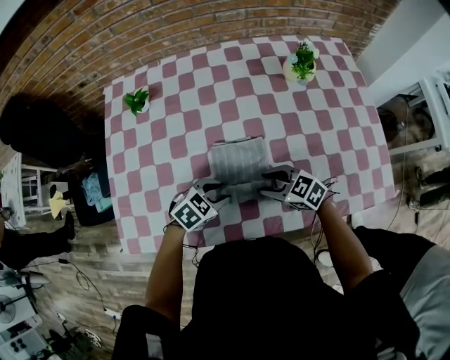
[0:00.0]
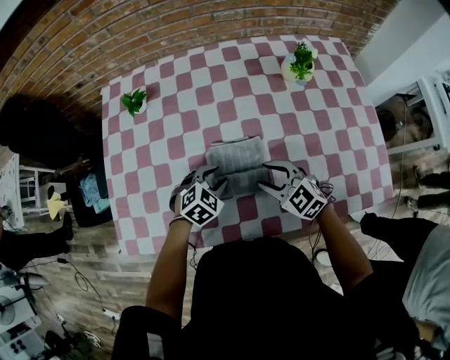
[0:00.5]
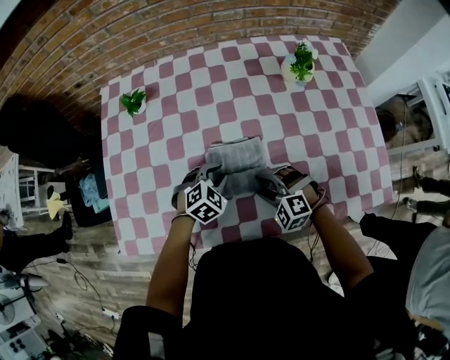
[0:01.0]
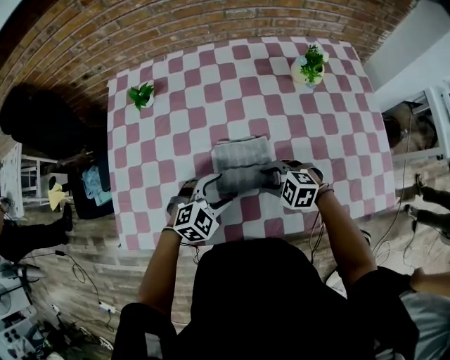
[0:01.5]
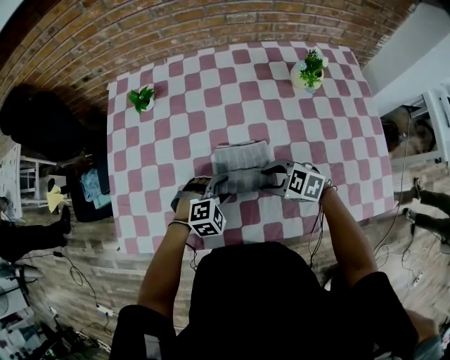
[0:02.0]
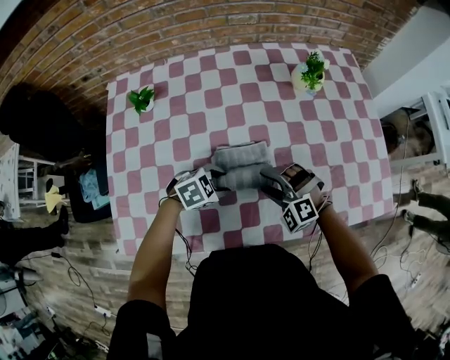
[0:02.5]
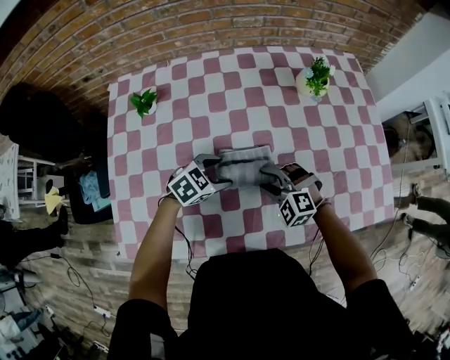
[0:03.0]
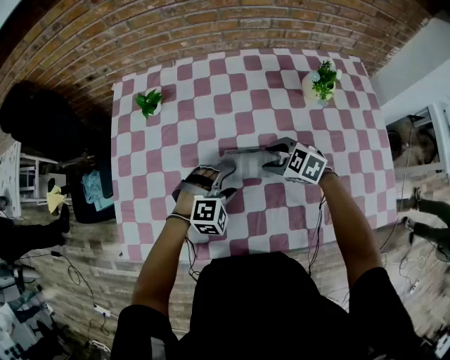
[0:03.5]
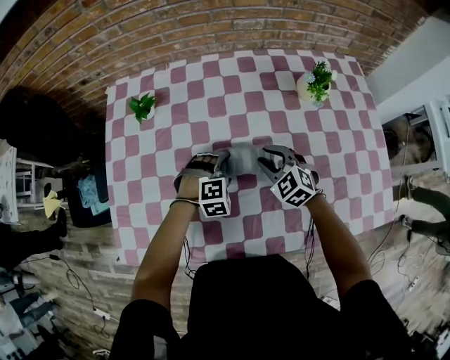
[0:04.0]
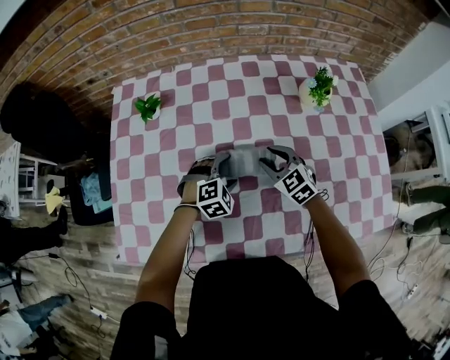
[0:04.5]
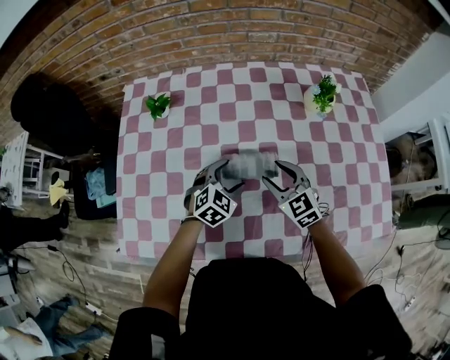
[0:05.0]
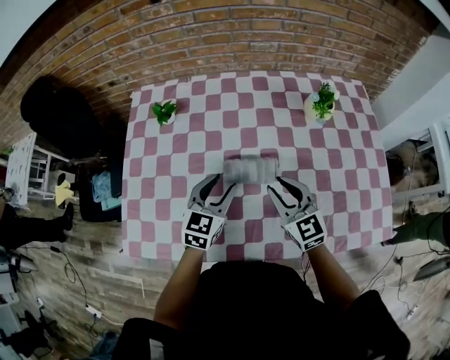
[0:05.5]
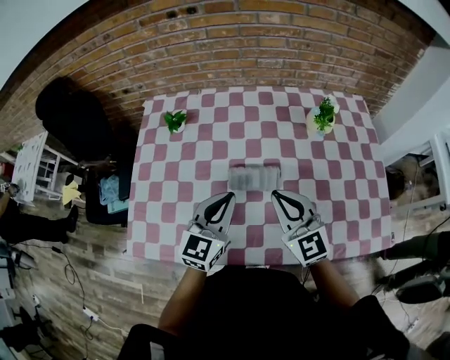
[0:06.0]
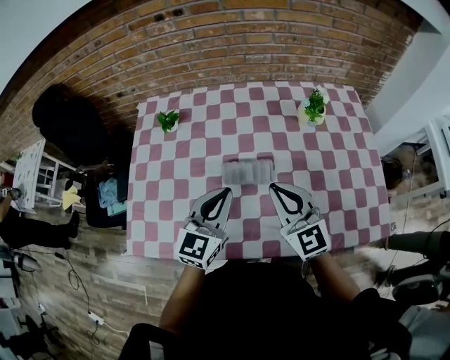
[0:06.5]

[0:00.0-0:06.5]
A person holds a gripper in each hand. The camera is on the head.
0:00.0 to 0:02.0: The left gripper turns by some 30 degrees.
0:02.0 to 0:04.5: The left gripper ends up approximately 10 cm from where it was. The right gripper moves some 15 cm, and changes its angle by approximately 30 degrees.
0:04.5 to 0:06.5: The two grippers go roughly 25 cm upward and backward. The right gripper tips its fingers upward by approximately 30 degrees, while the left gripper tips its fingers upward by approximately 50 degrees, and closes its fingers.

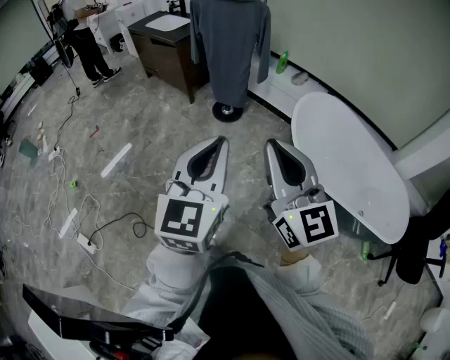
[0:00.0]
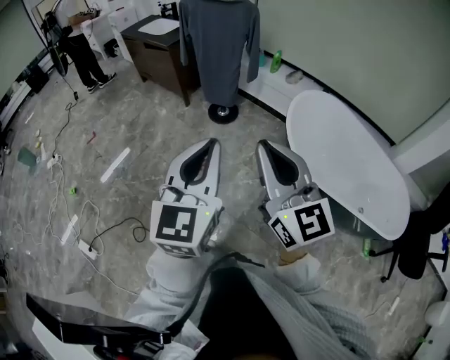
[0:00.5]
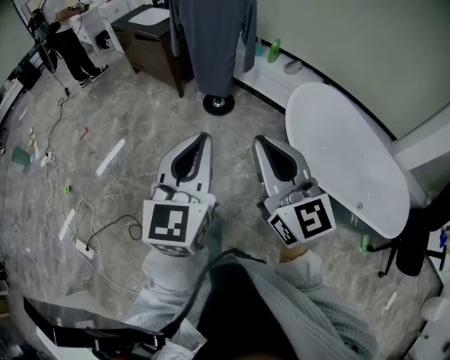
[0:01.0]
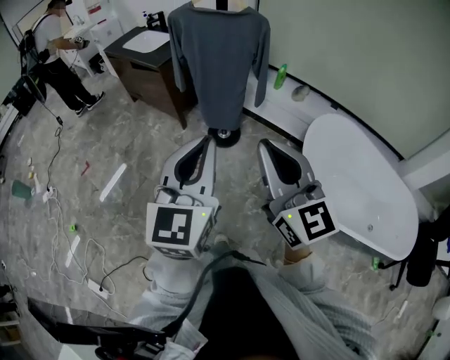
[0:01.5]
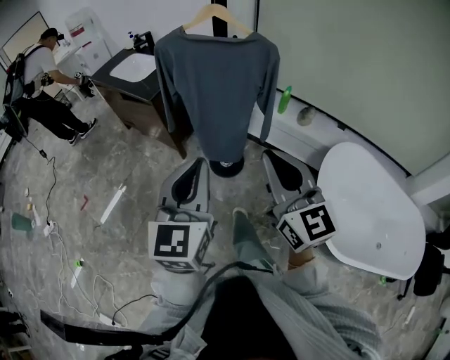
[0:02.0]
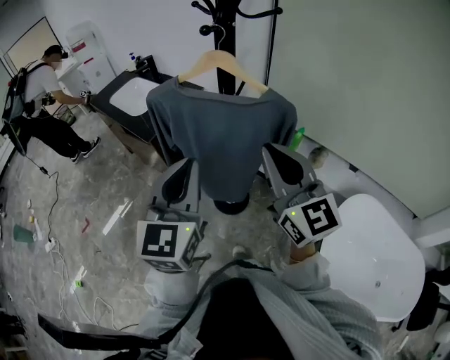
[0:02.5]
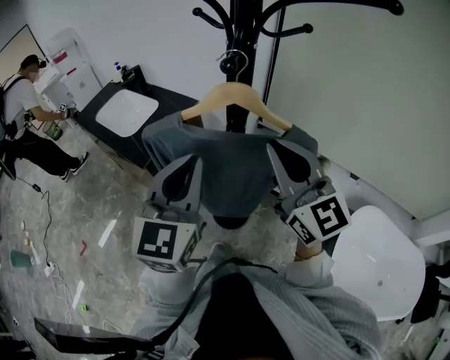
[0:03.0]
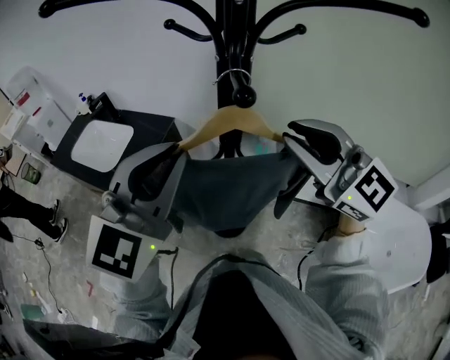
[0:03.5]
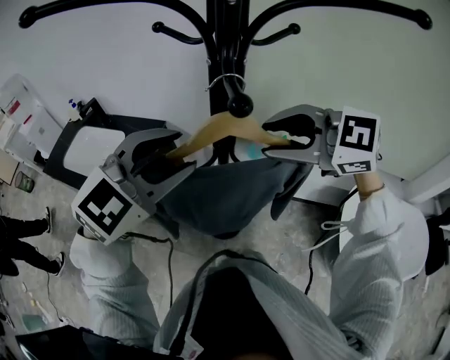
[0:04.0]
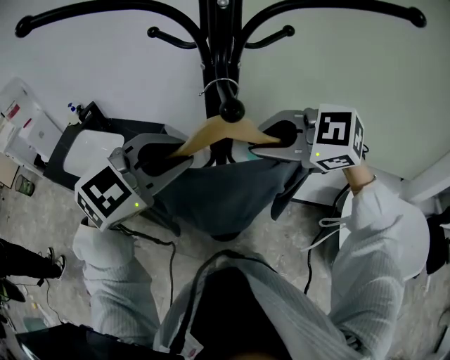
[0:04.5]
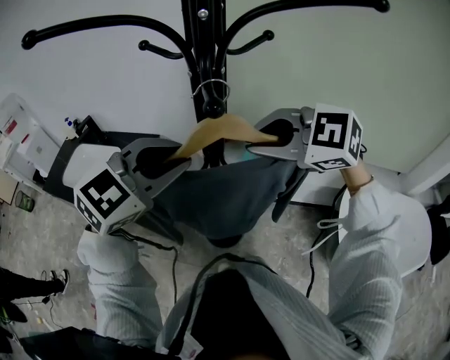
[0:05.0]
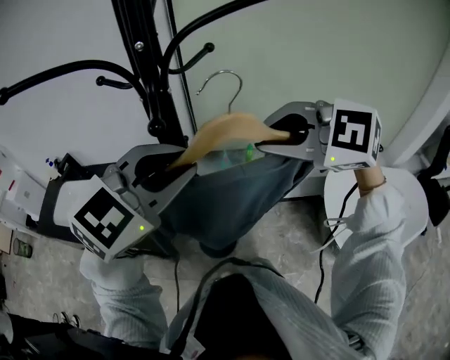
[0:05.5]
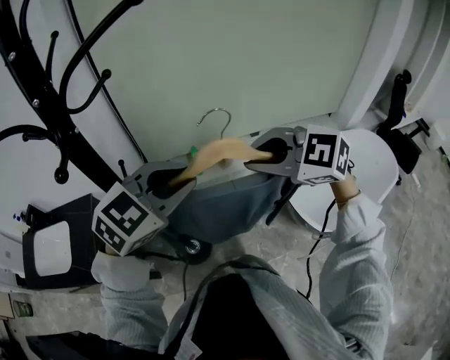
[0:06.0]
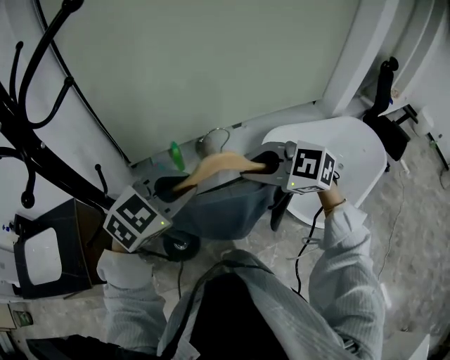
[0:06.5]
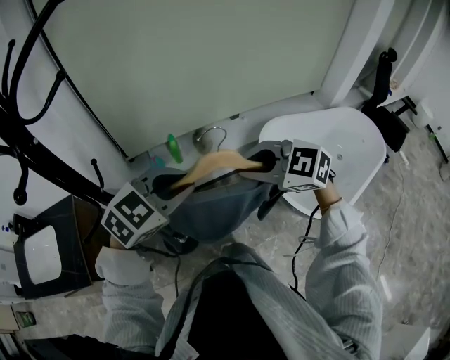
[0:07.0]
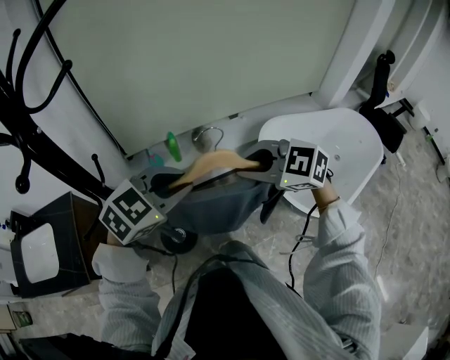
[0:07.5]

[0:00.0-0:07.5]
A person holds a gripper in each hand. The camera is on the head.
0:00.0 to 0:02.0: The two grippers travel together, forward, roughly 50 cm.
0:02.0 to 0:04.0: Both grippers are carried forward, about 50 cm. The left gripper changes its angle by roughly 60 degrees, and opens up. Meanwhile the right gripper tips its fingers downward by about 30 degrees, and opens.
0:04.0 to 0:05.5: The left gripper moves roughly 10 cm, and closes up, while the right gripper moves approximately 10 cm, and closes its fingers.
0:05.5 to 0:07.5: The right gripper moves to the right and downward, approximately 25 cm, and swivels approximately 30 degrees. The left gripper heads downward and to the right, covering roughly 25 cm, and swivels approximately 30 degrees.

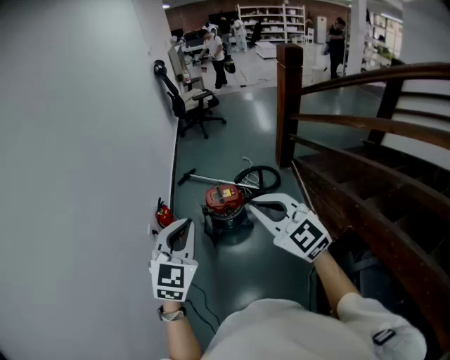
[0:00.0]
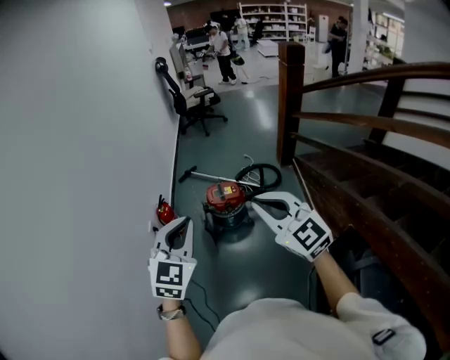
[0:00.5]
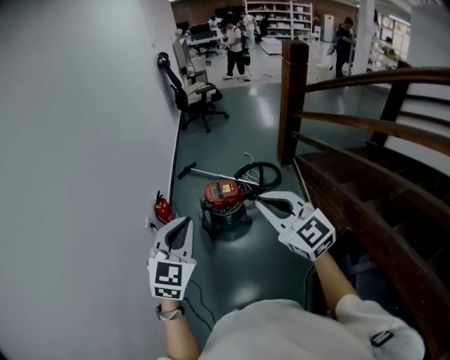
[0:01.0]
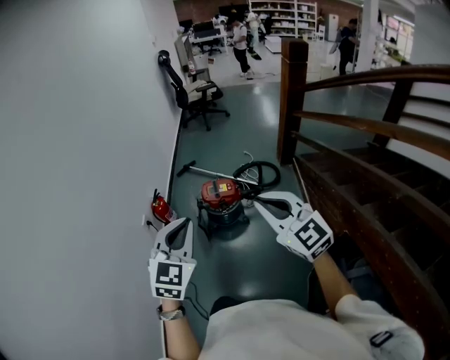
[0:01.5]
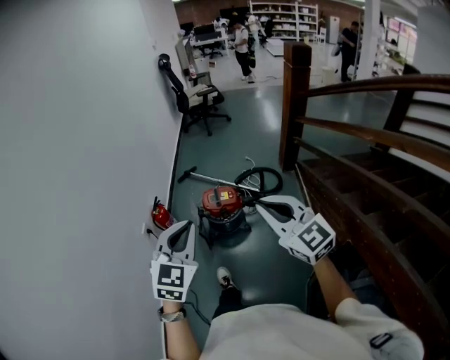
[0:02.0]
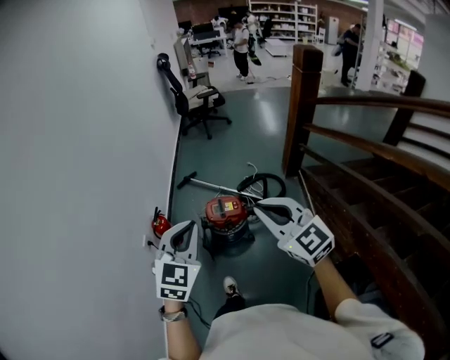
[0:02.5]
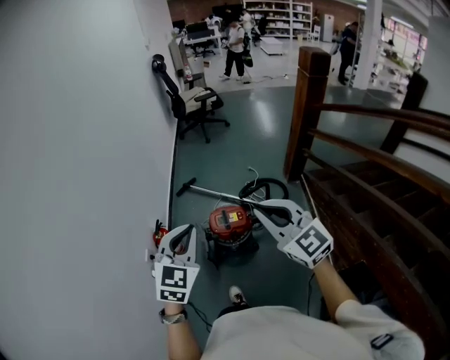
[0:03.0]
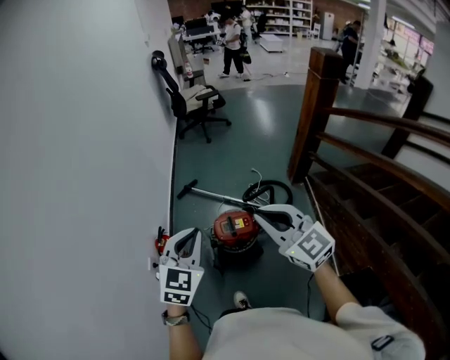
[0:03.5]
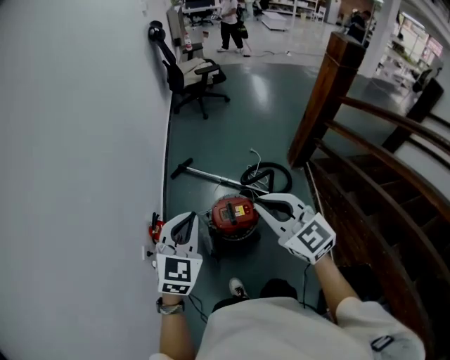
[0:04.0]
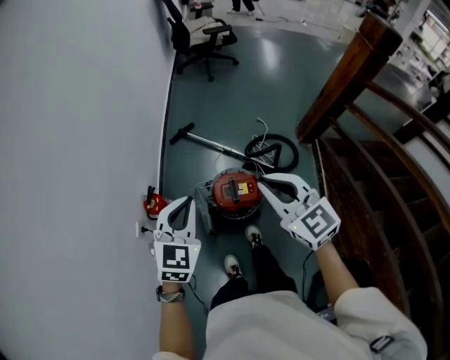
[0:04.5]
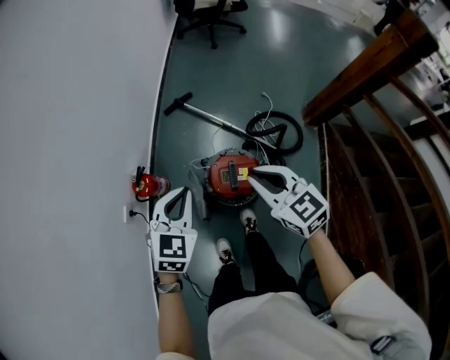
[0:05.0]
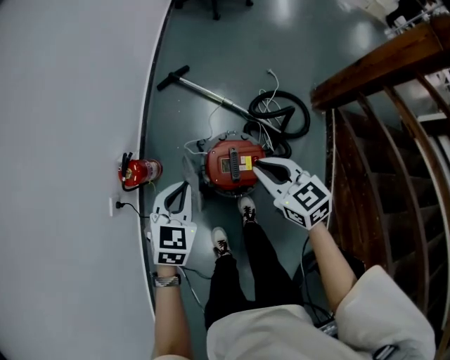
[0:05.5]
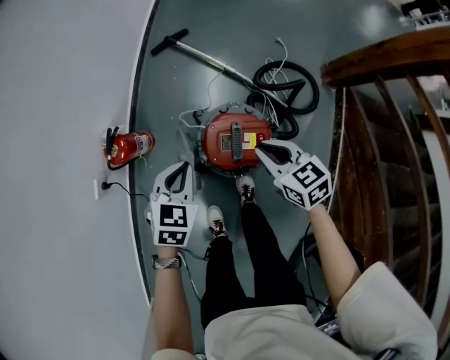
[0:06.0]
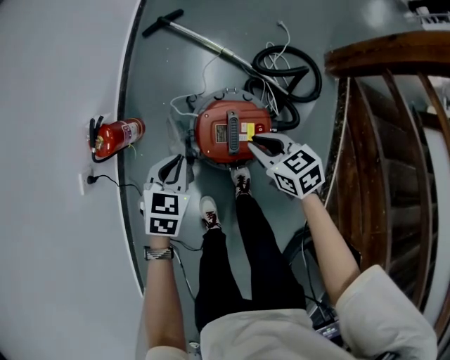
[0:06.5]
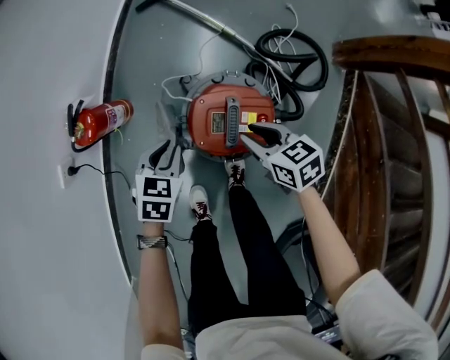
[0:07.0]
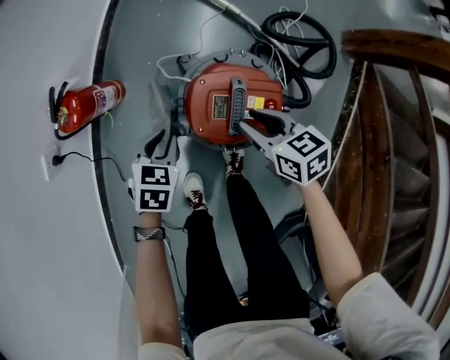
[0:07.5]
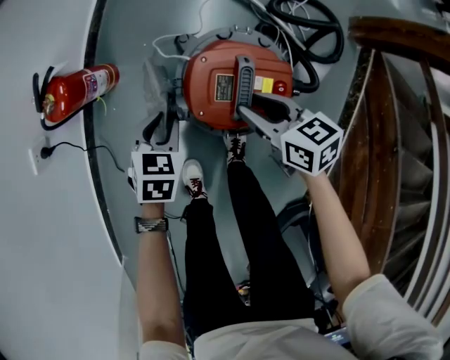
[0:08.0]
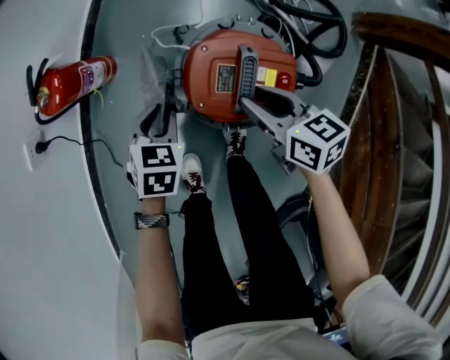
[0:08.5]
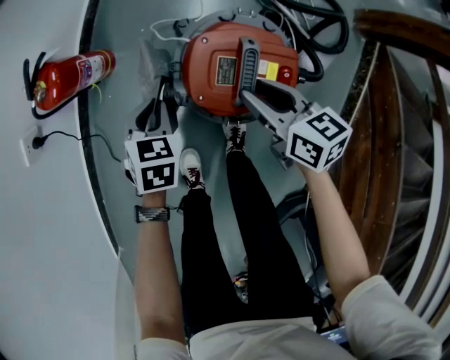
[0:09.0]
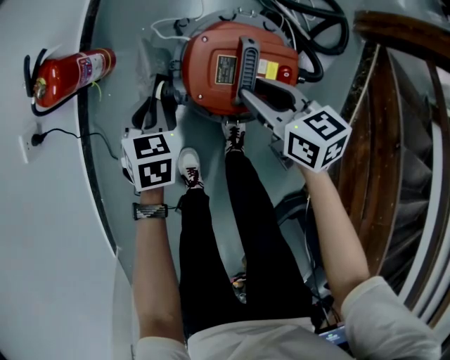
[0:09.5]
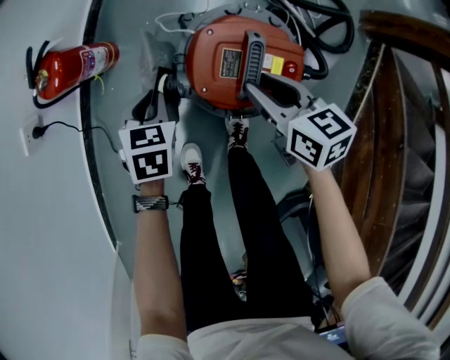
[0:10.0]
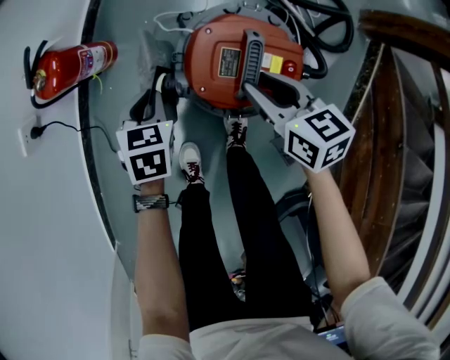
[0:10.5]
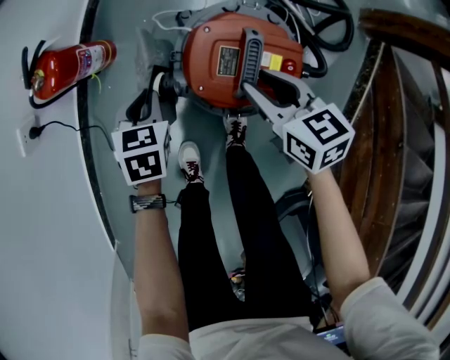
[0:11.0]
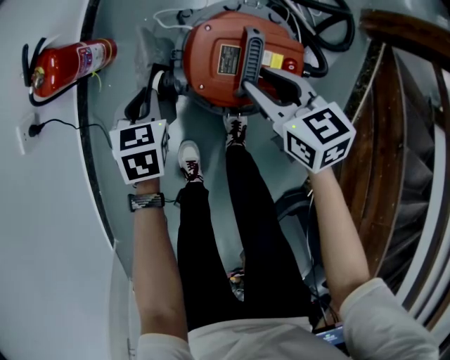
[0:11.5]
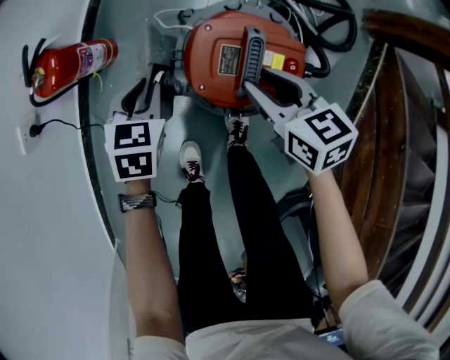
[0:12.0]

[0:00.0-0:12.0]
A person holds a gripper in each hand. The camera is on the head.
0:00.0 to 0:02.0: Both grippers travel together to the right, about 5 cm.
0:02.0 to 0:04.0: The grippers both shift forward by roughly 35 cm.
0:04.0 to 0:06.0: Both grippers travel together downward, approximately 40 cm. The left gripper turns by about 40 degrees; the right gripper tips its fingers downward by roughly 30 degrees.
0:06.0 to 0:08.0: Both grippers move downward, about 20 cm. The right gripper opens up, while the left gripper opens up.
0:08.0 to 0:12.0: The grippers make only small movements.

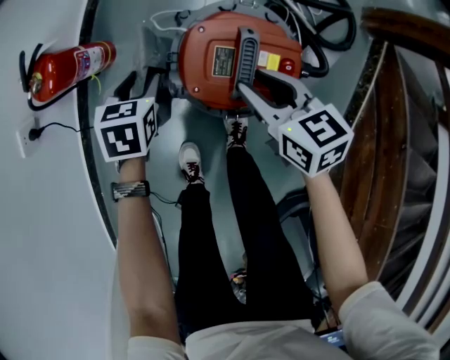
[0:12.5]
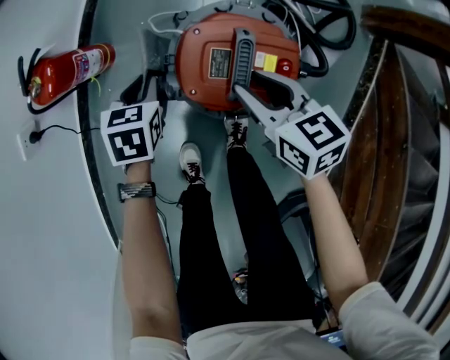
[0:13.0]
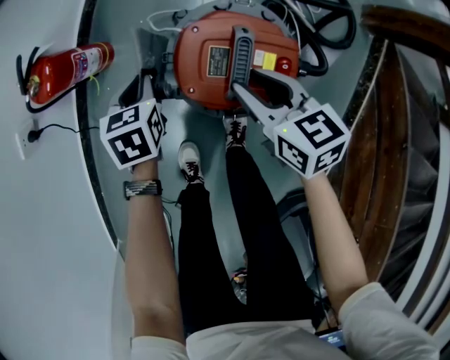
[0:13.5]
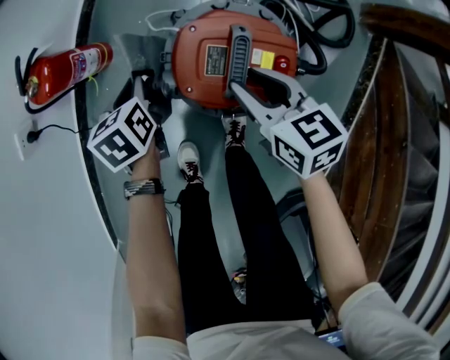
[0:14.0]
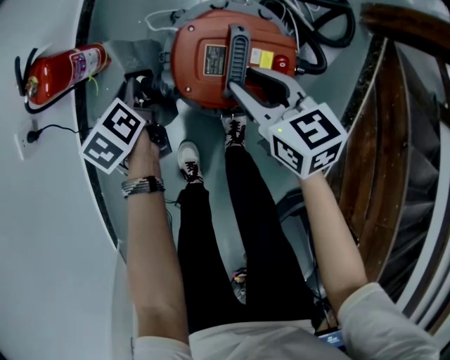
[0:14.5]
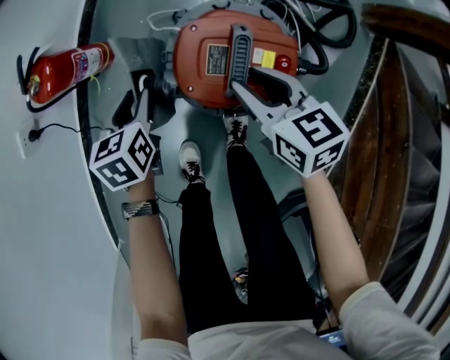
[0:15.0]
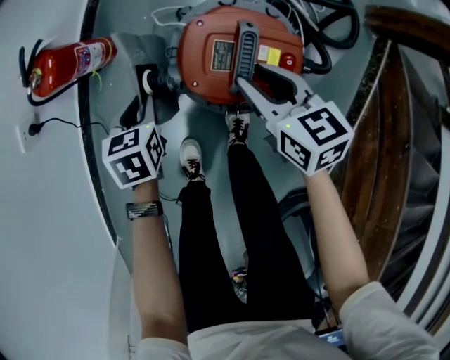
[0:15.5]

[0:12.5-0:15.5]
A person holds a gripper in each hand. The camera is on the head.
0:12.5 to 0:14.0: The left gripper turns by approximately 30 degrees, and closes its fingers.
0:14.0 to 0:15.5: The left gripper travels backward by about 5 cm.
